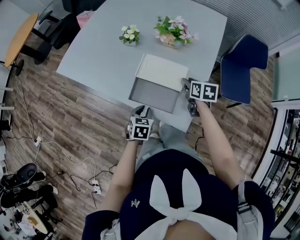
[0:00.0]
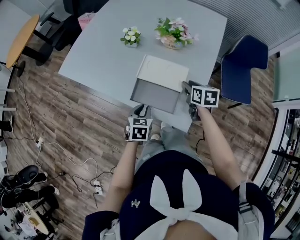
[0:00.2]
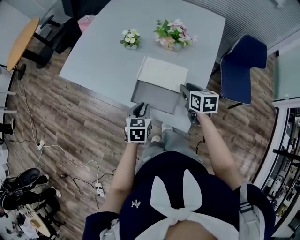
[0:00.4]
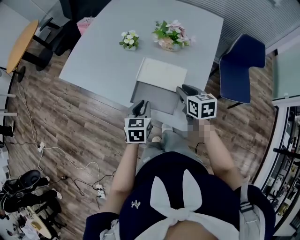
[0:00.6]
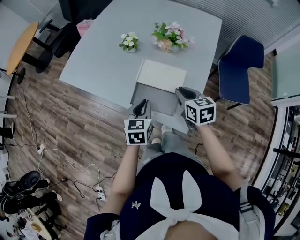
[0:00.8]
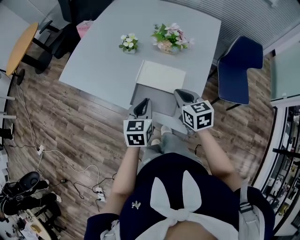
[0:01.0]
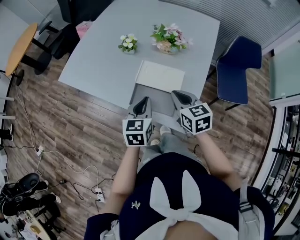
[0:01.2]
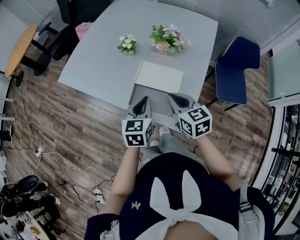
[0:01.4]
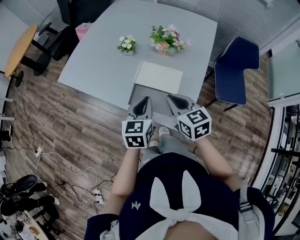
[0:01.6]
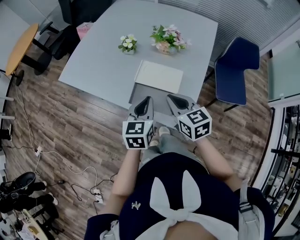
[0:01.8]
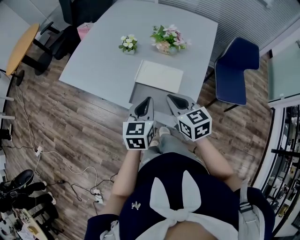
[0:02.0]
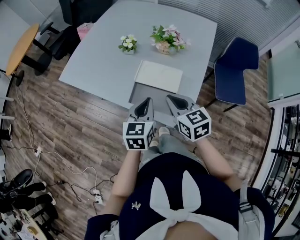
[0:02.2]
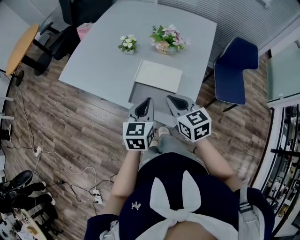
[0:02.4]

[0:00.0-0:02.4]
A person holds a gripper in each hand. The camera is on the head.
0:00.0 to 0:01.2: The right gripper is displaced upward, to the left and backward by about 15 cm, changes its angle by approximately 30 degrees, and closes its fingers; the left gripper heads upward, covering some 15 cm, and turns by some 20 degrees.
0:01.2 to 0:02.4: The right gripper moves roughly 5 cm.

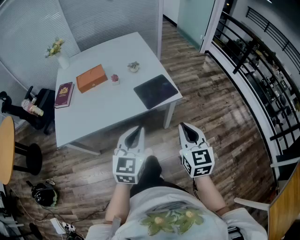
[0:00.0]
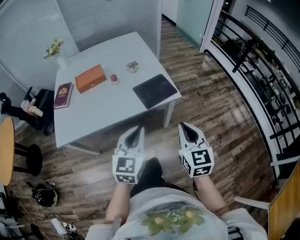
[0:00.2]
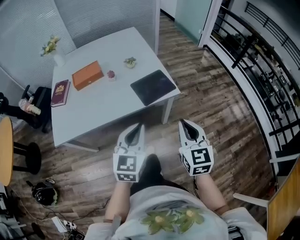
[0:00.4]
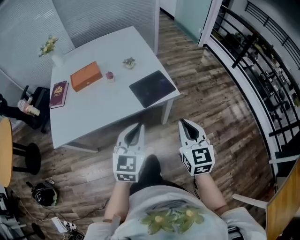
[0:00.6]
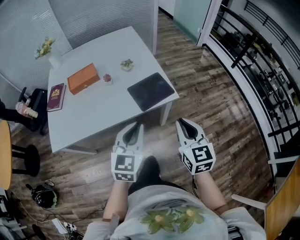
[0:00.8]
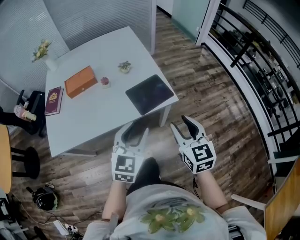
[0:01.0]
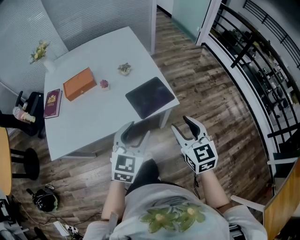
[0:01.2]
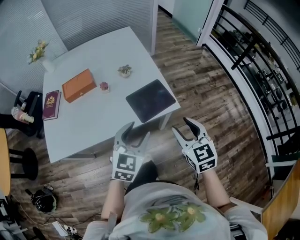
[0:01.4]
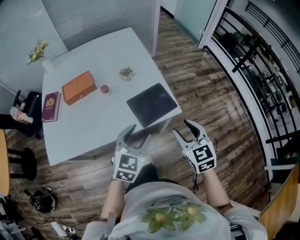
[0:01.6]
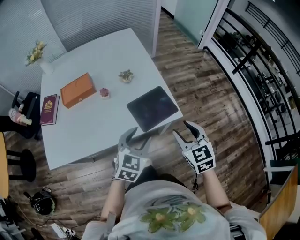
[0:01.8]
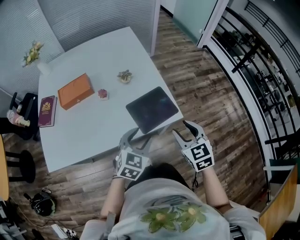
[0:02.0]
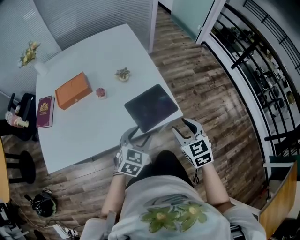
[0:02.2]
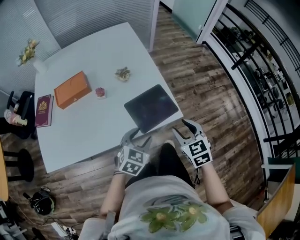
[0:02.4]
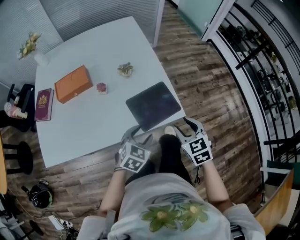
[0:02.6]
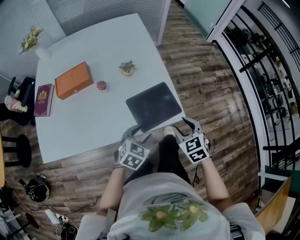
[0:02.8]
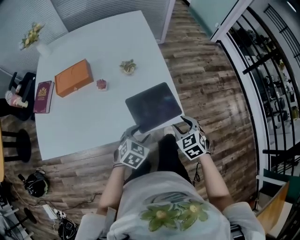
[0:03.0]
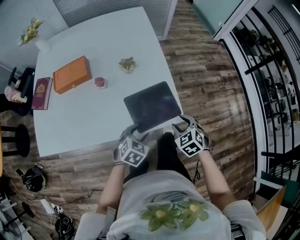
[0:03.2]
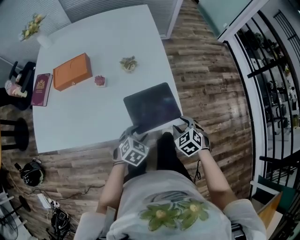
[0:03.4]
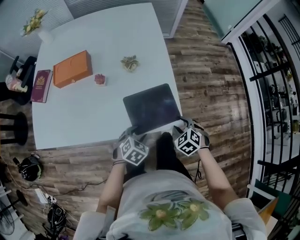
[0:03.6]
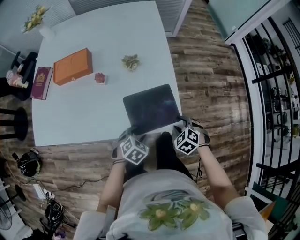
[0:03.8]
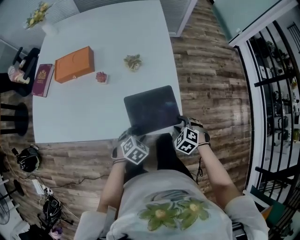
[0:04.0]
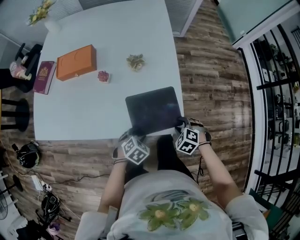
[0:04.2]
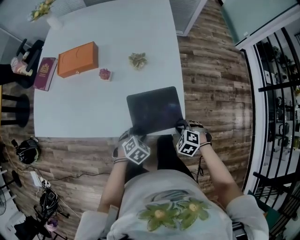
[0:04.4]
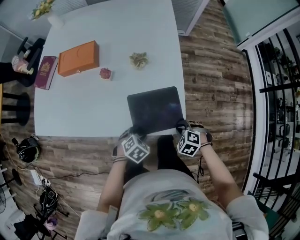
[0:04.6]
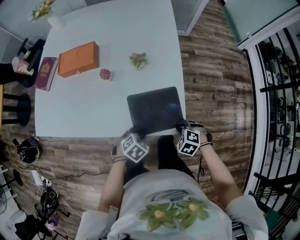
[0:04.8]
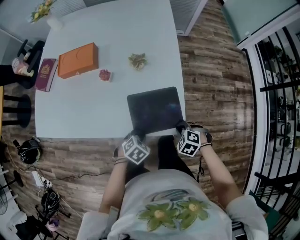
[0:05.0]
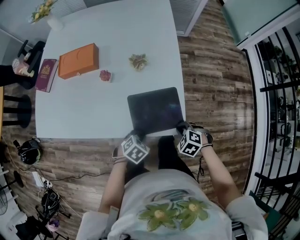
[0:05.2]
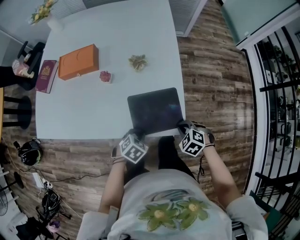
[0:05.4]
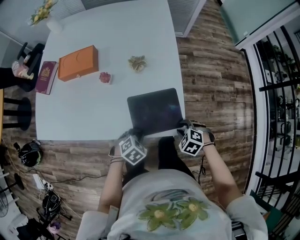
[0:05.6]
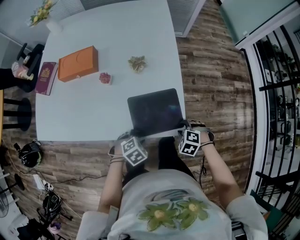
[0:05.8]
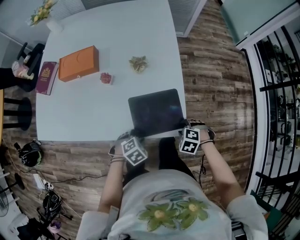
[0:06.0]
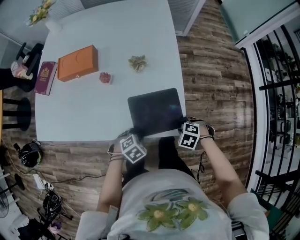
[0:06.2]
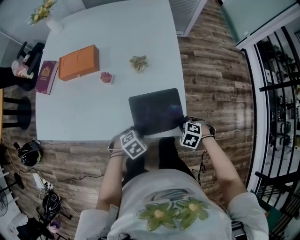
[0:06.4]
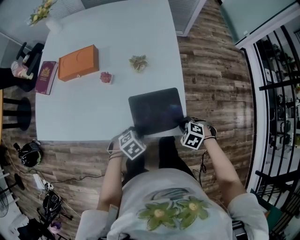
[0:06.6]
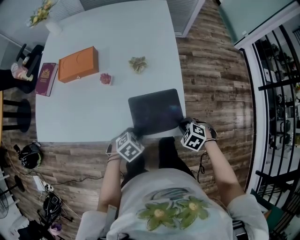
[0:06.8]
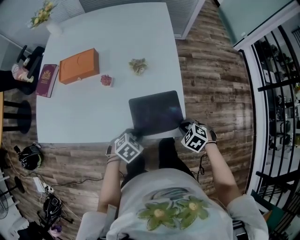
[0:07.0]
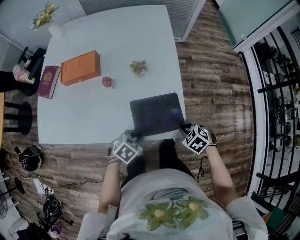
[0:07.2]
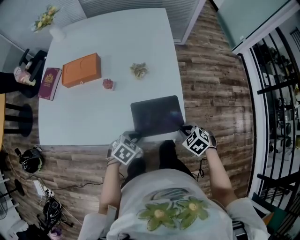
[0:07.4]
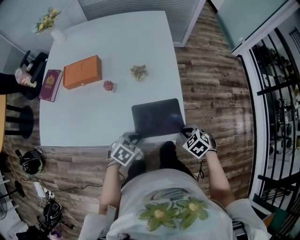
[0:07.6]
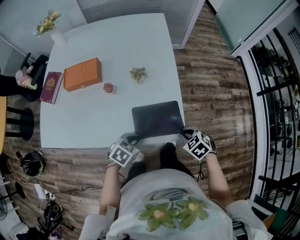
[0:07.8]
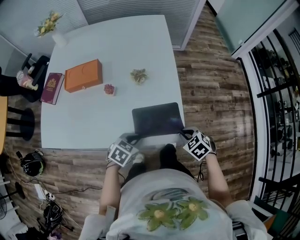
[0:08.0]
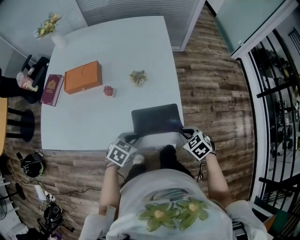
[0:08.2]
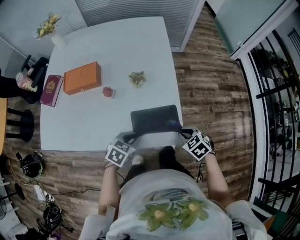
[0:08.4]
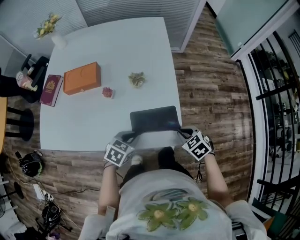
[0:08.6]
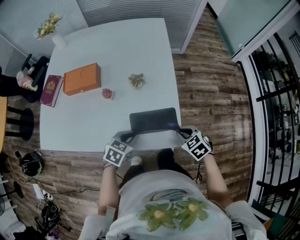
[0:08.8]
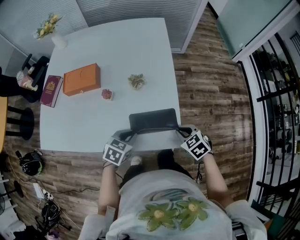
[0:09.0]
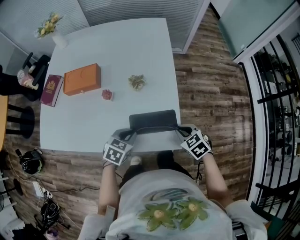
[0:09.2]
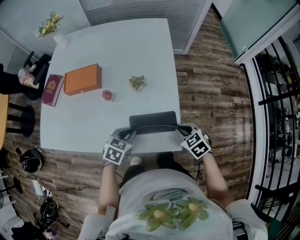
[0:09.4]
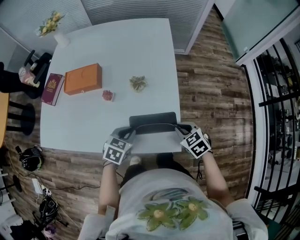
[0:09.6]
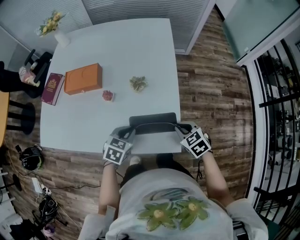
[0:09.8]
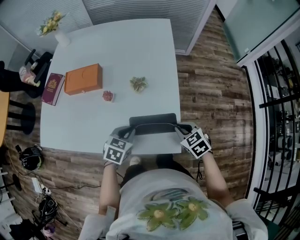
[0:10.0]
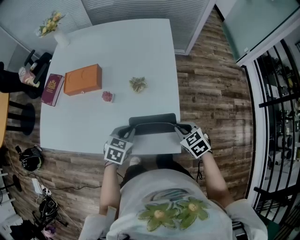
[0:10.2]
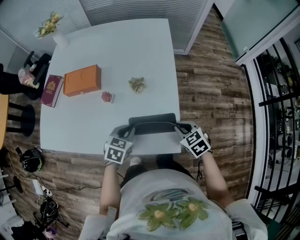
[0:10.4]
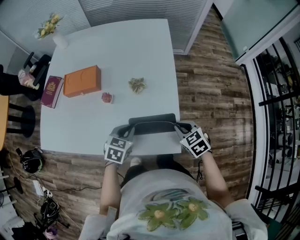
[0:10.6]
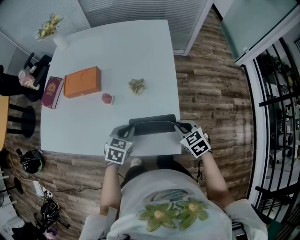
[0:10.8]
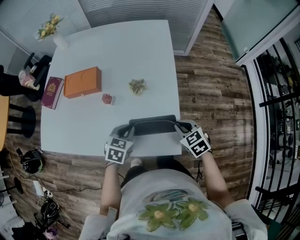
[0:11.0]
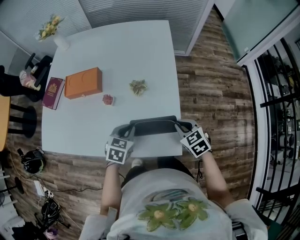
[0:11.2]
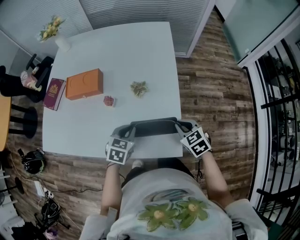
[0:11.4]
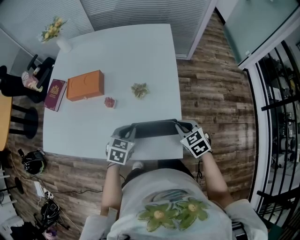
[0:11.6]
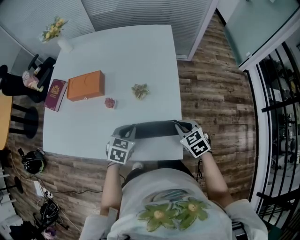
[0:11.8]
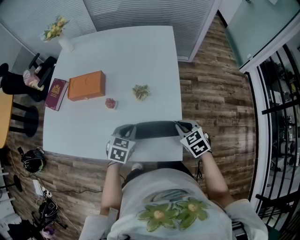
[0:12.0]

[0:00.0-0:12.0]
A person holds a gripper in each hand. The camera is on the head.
0:00.0 to 0:01.6: The two grippers go some 15 cm forward. The right gripper opens its fingers. Meanwhile the left gripper opens.
0:01.6 to 0:03.0: Both grippers move downward and forward, about 20 cm. The right gripper turns by about 30 degrees. Meanwhile the left gripper turns by about 20 degrees.
0:03.0 to 0:04.4: The grippers both shift downward by about 10 cm. The right gripper changes its angle by roughly 50 degrees, and closes up.
0:04.4 to 0:06.0: The left gripper closes, then opens again.
0:06.0 to 0:07.6: The two grippers go roughly 5 cm upward. The left gripper rotates approximately 20 degrees, and closes up, while the right gripper changes its angle by about 30 degrees, and closes its fingers.
0:07.6 to 0:09.0: The two grippers go some 5 cm forward.
0:09.0 to 0:10.4: The right gripper shifts by some 5 cm.
0:10.4 to 0:12.0: The grippers move only a little.

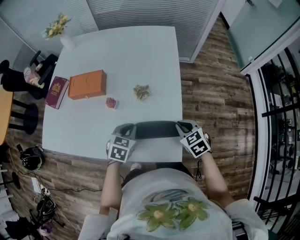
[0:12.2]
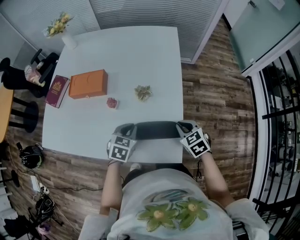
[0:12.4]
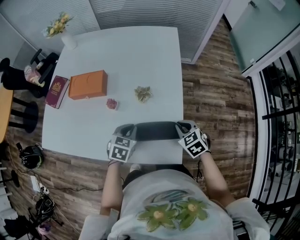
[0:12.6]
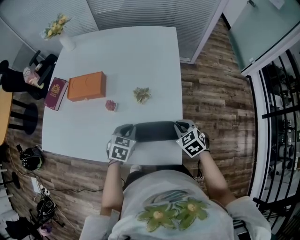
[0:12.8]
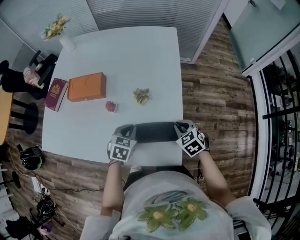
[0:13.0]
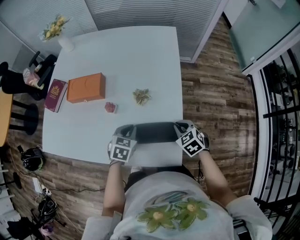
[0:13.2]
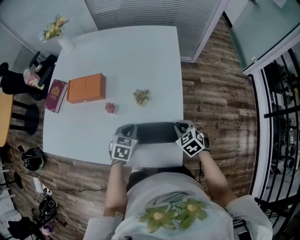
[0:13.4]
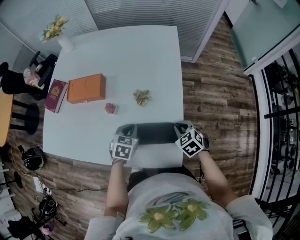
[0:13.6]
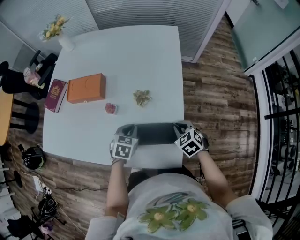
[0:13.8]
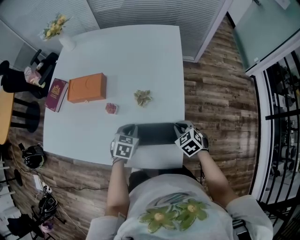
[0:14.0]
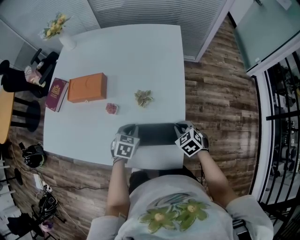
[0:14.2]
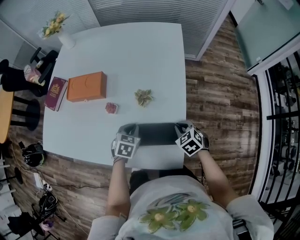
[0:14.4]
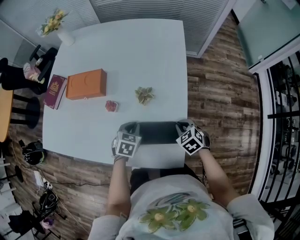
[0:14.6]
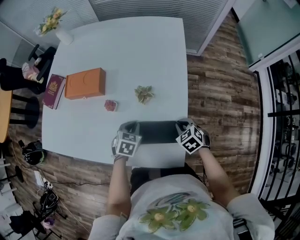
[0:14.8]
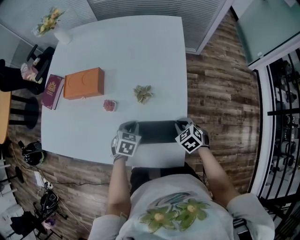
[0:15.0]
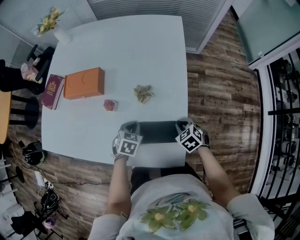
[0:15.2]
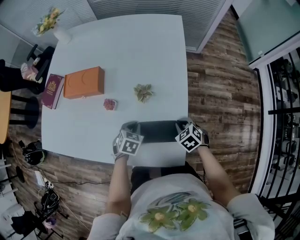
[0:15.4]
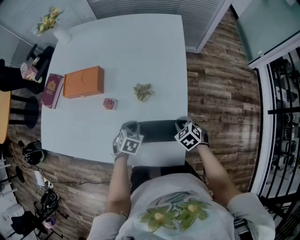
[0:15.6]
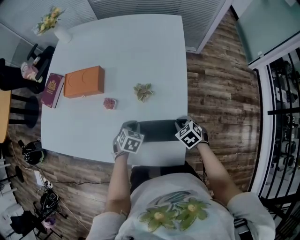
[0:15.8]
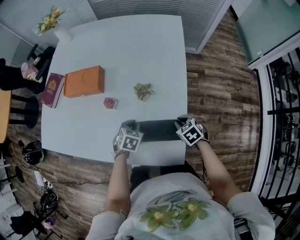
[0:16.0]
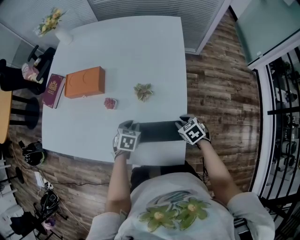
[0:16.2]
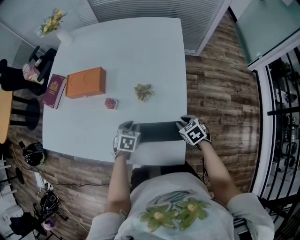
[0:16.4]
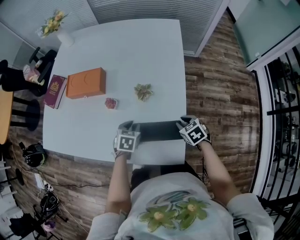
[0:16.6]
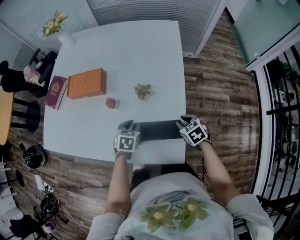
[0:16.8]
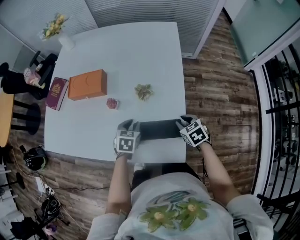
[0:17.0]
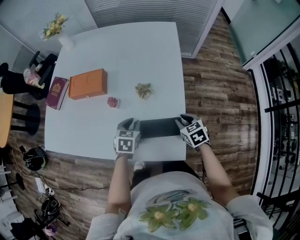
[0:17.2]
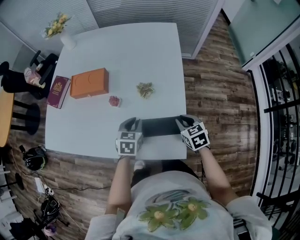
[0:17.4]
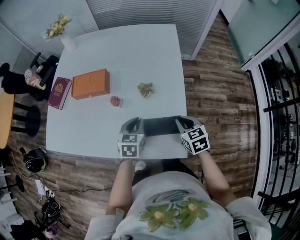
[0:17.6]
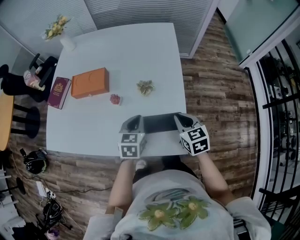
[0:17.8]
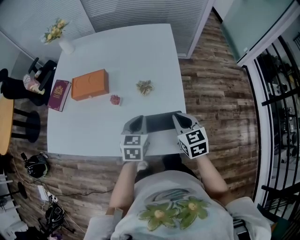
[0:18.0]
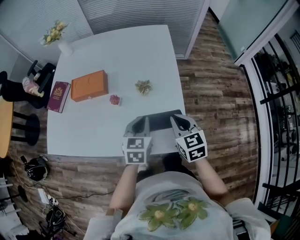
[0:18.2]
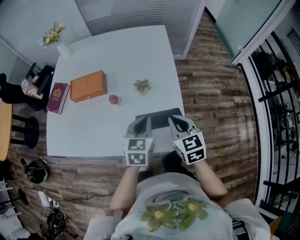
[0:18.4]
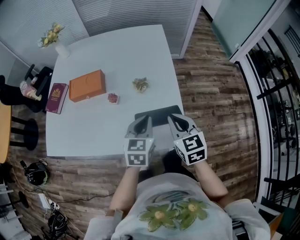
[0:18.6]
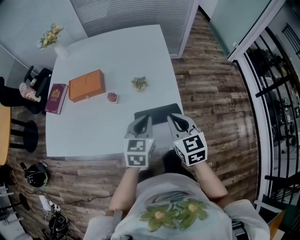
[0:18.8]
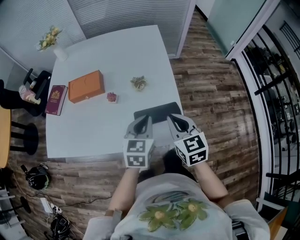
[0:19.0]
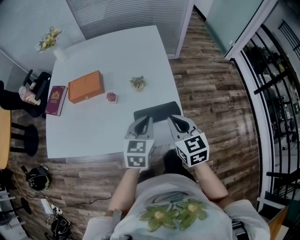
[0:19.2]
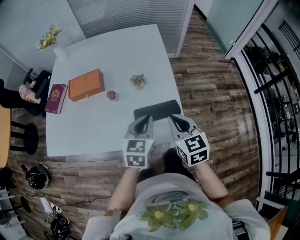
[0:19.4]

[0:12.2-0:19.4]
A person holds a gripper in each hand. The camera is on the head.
0:12.2 to 0:13.6: The right gripper changes place by about 5 cm.
0:13.6 to 0:15.0: The two grippers go approximately 5 cm downward.
0:15.0 to 0:16.6: The grippers stay close to where they were, moving slightly.
0:16.6 to 0:18.0: The grippers both shift upward by approximately 15 cm. The left gripper swivels some 20 degrees, and closes up. The right gripper rotates roughly 30 degrees, and closes its fingers.
0:18.0 to 0:19.4: The grippers both shift backward and upward by roughly 10 cm.

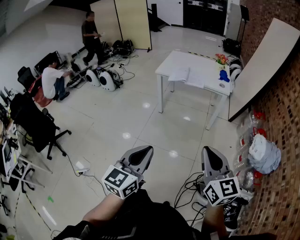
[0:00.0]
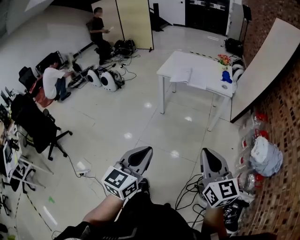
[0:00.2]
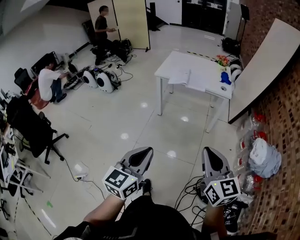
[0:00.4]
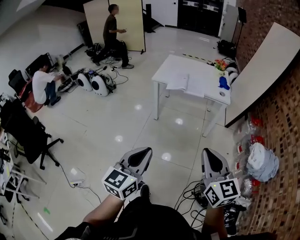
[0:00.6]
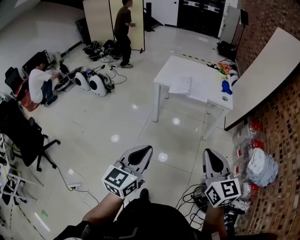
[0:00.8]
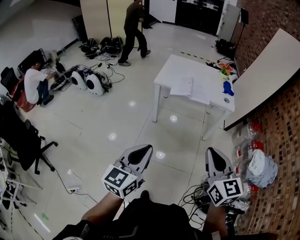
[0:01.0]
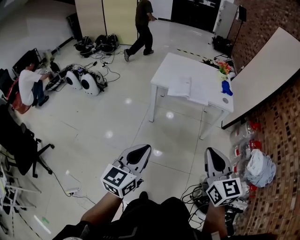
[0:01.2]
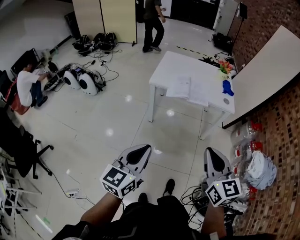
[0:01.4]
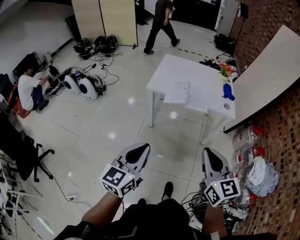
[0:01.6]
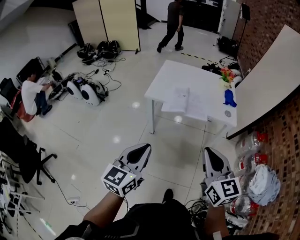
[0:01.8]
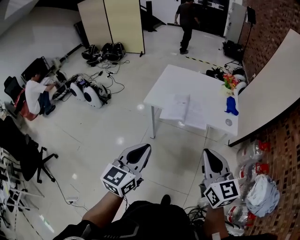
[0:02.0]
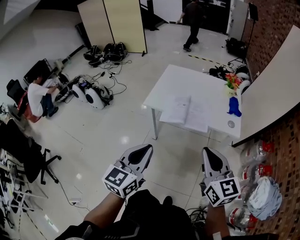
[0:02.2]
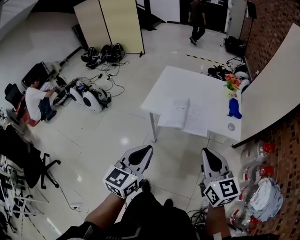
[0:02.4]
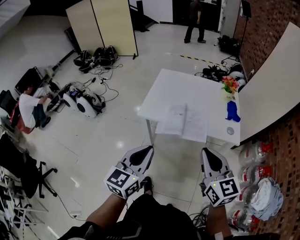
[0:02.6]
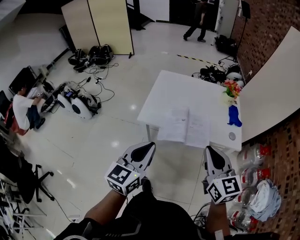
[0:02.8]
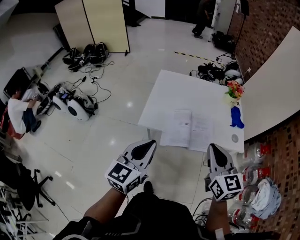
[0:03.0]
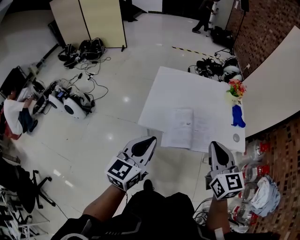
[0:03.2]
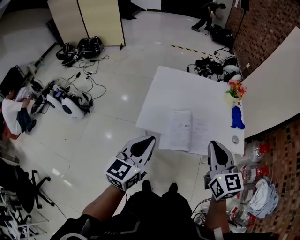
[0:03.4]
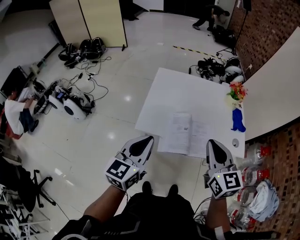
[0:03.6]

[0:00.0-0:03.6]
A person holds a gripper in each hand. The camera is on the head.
0:00.0 to 0:01.8: The pair of grippers is taken forward, about 40 cm.
0:01.8 to 0:03.6: Both grippers move forward, approximately 40 cm.
